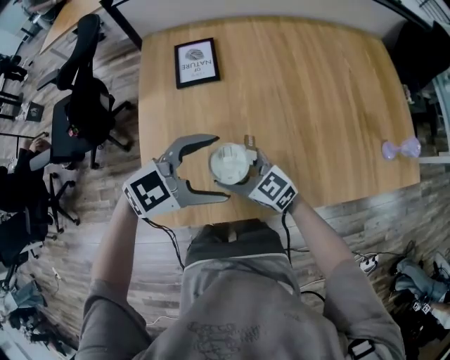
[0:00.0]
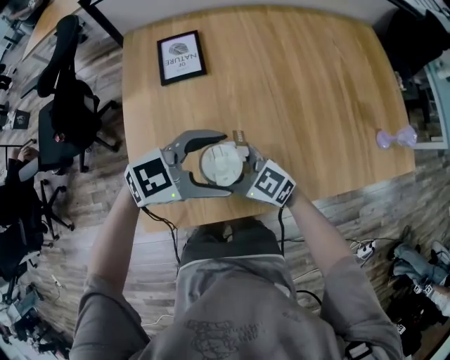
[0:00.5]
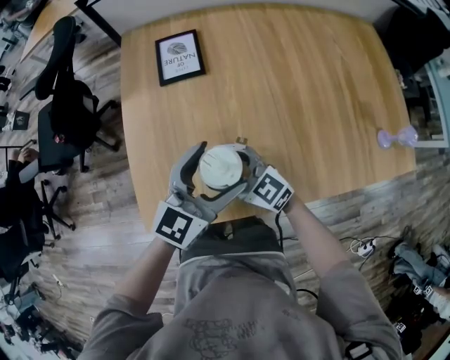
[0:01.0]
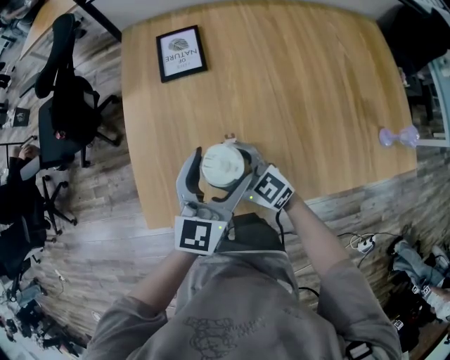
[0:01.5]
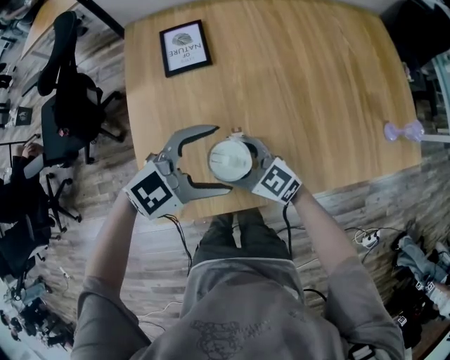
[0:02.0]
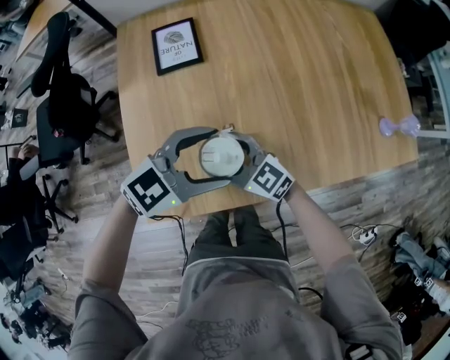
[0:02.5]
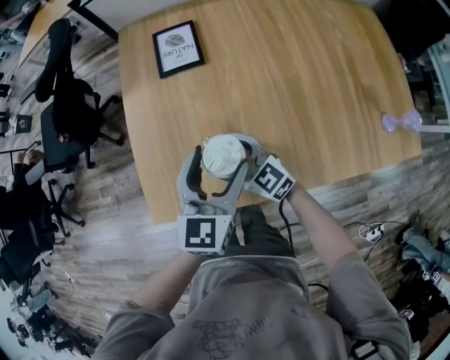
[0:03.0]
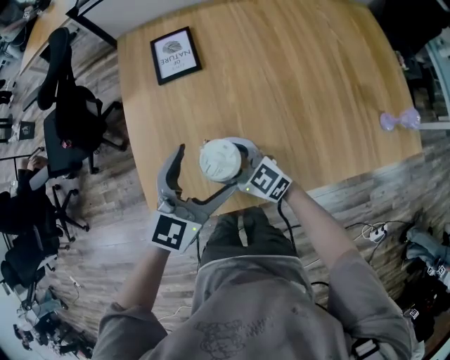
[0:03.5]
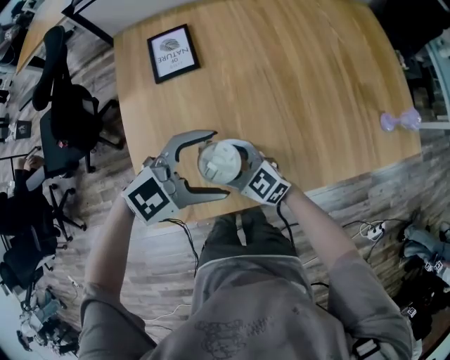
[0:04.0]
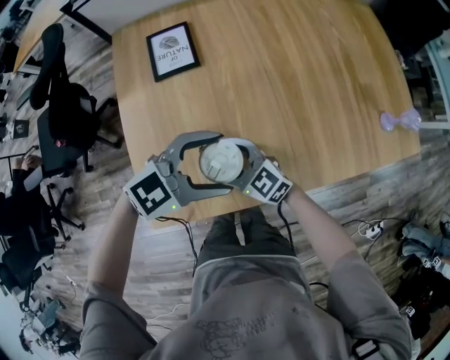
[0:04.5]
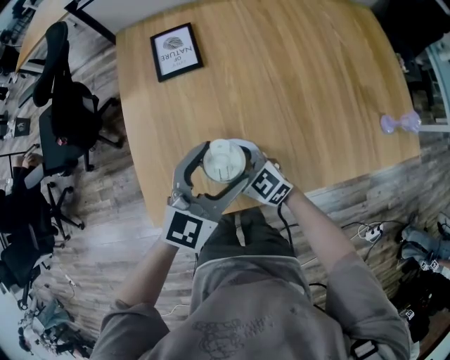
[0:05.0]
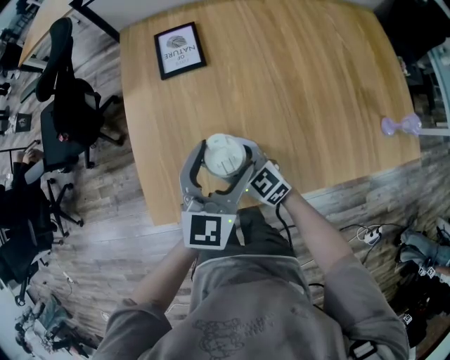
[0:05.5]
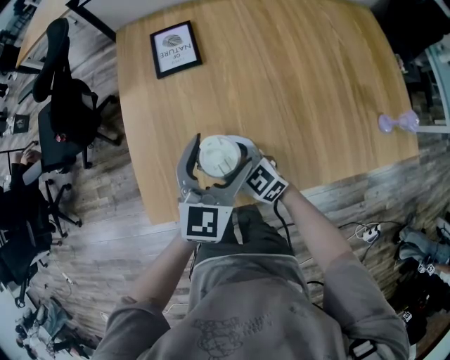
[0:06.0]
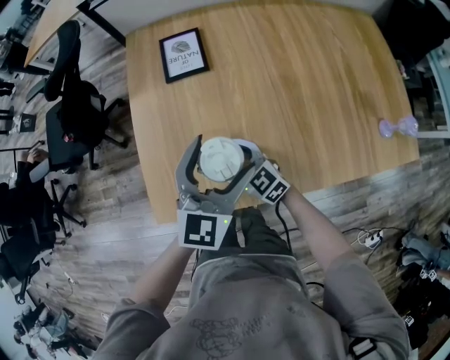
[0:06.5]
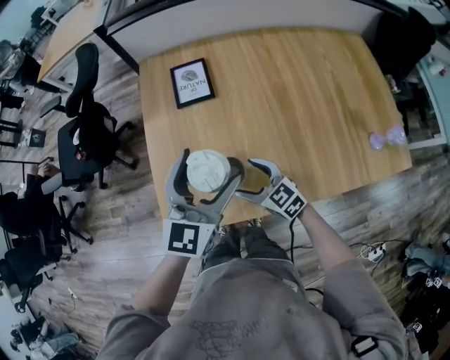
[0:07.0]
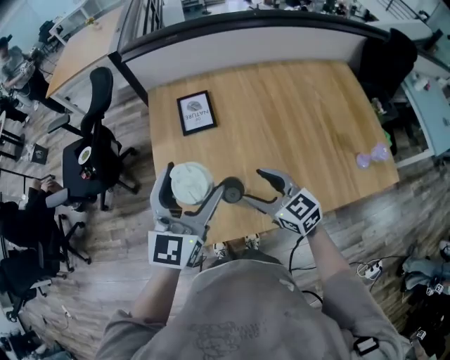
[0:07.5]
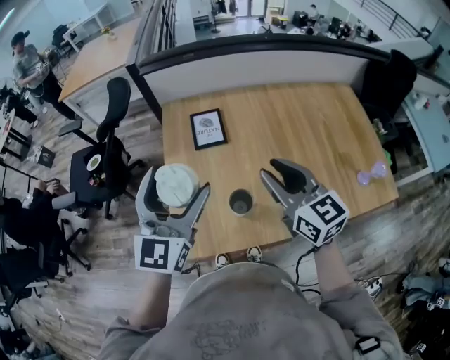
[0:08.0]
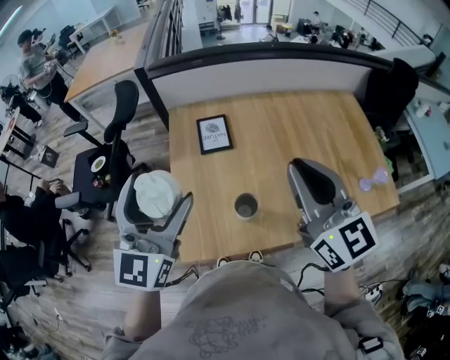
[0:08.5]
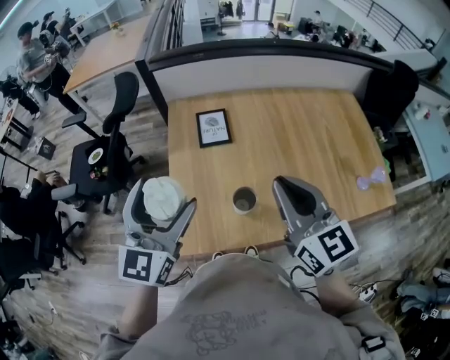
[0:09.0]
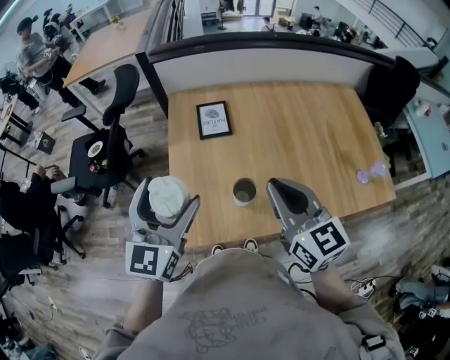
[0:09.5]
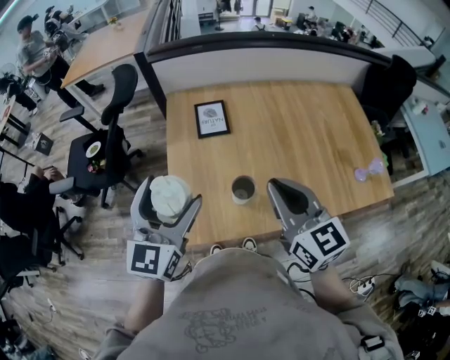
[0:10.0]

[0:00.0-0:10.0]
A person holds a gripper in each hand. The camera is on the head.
0:04.0 to 0:06.0: The left gripper rotates approximately 60 degrees.
0:06.0 to 0:08.0: The right gripper goes about 35 cm upward, turns by roughly 30 degrees, and closes. The left gripper travels upward and to the left by some 30 cm, and changes its angle by roughly 20 degrees.
0:08.0 to 0:10.0: The grippers both shift backward by about 5 cm. The right gripper goes upward and returns, about 10 cm each way.

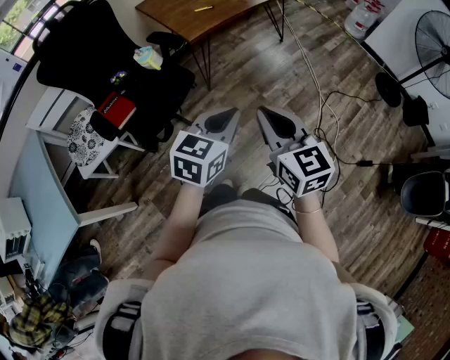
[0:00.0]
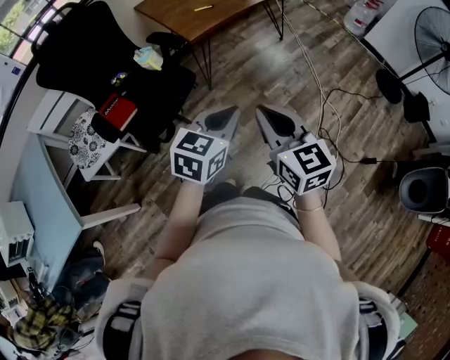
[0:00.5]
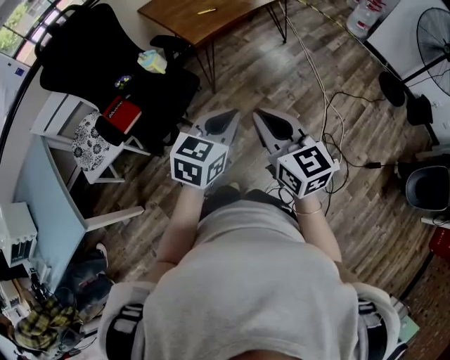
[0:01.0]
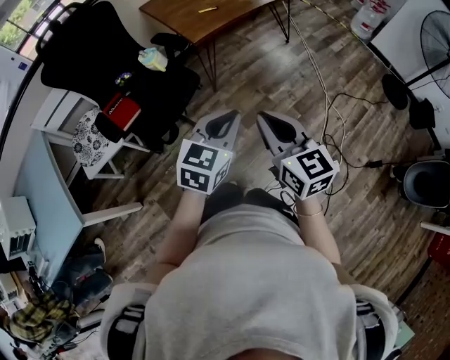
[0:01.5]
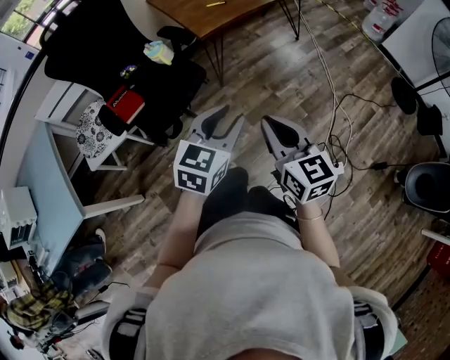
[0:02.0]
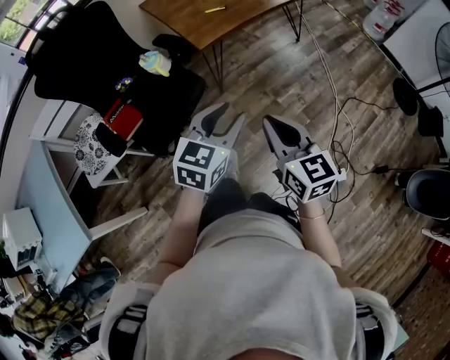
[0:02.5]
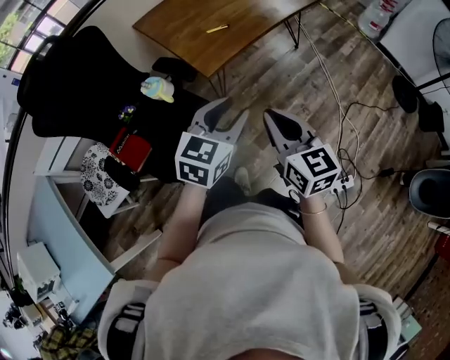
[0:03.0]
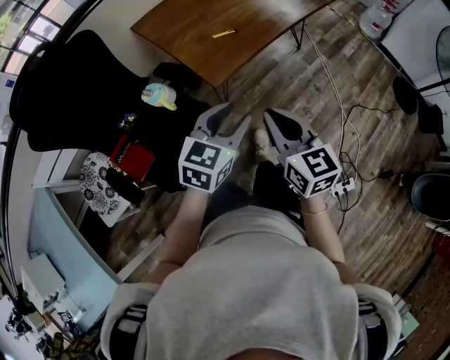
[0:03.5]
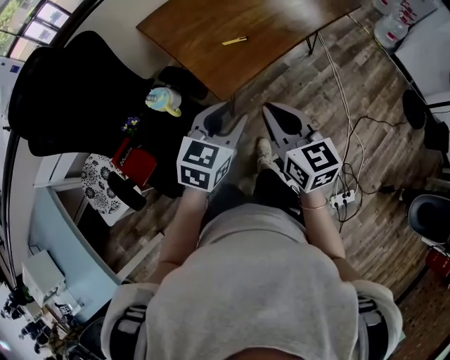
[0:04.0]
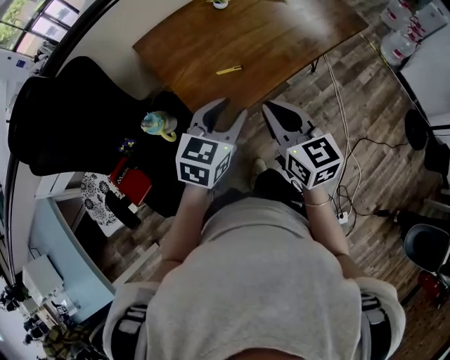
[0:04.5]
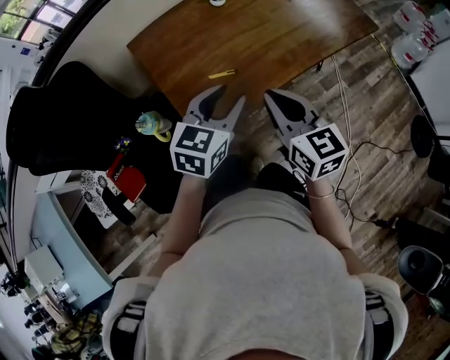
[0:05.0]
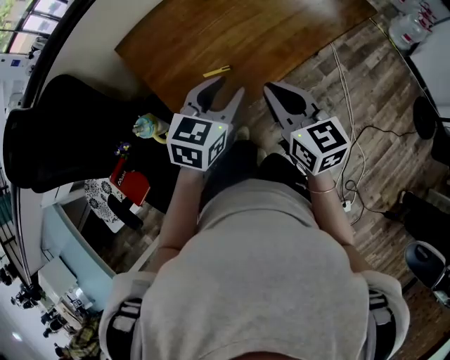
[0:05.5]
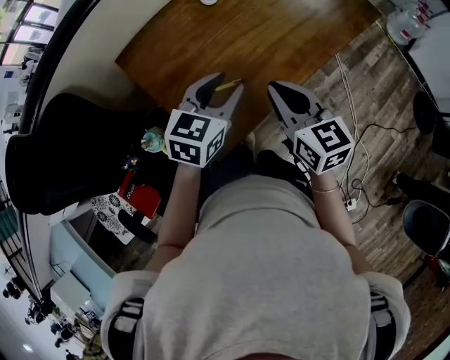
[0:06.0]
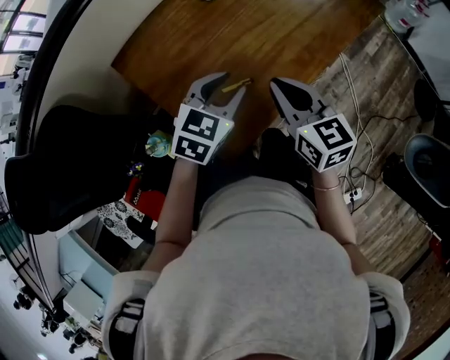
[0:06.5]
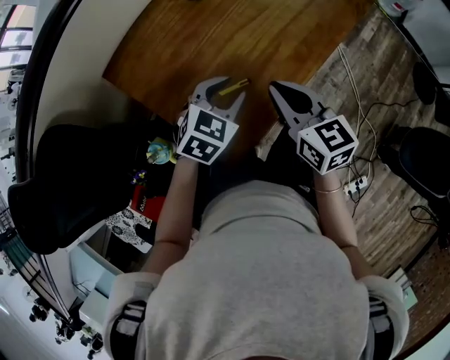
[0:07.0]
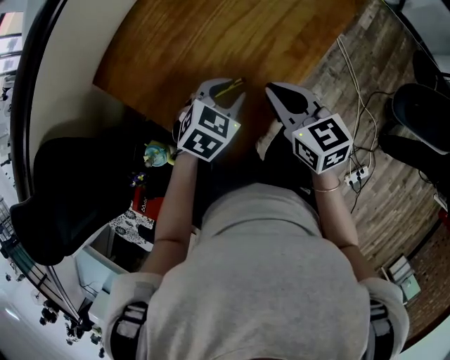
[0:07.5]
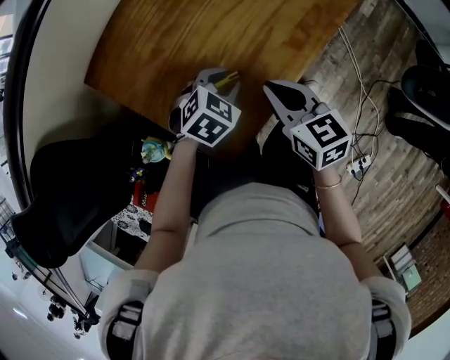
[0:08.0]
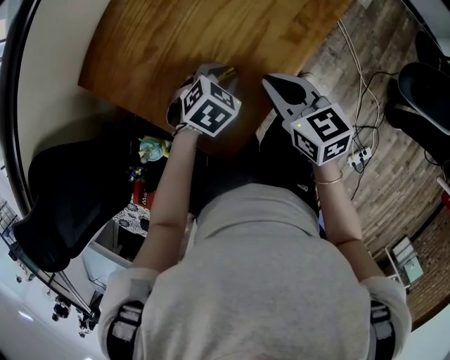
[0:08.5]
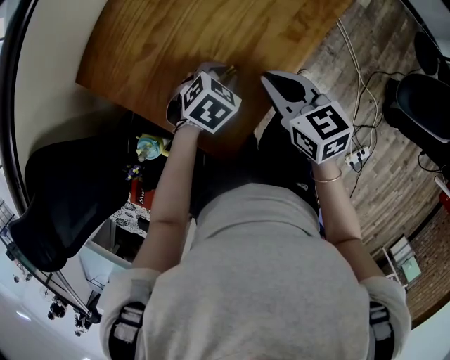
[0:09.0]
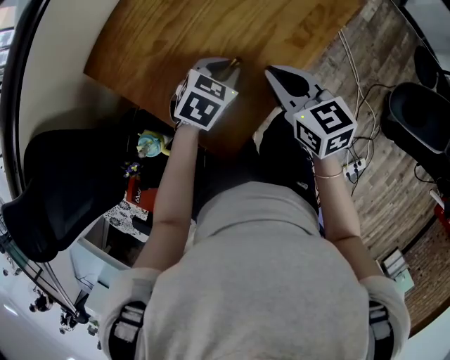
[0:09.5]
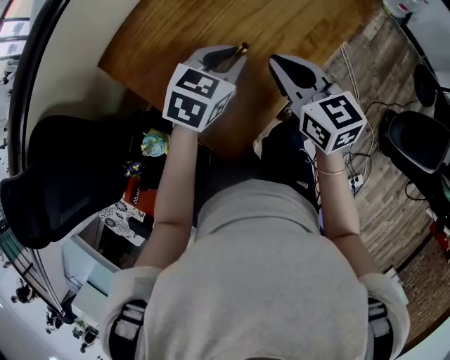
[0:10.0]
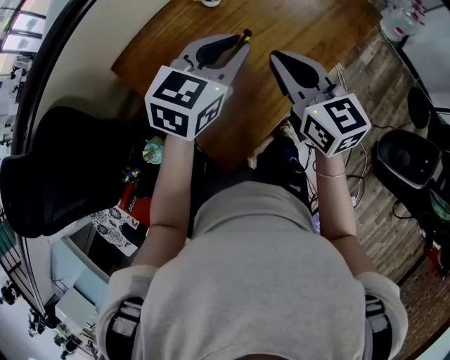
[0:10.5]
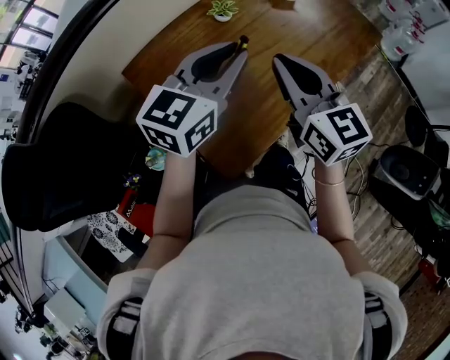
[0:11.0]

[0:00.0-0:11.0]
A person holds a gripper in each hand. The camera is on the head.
0:00.0 to 0:02.0: The left gripper opens its fingers.
0:02.0 to 0:03.5: The left gripper is displaced forward by roughly 30 cm. The right gripper travels forward and to the left by approximately 30 cm.
0:03.5 to 0:05.5: The two grippers go some 30 cm forward.
0:05.5 to 0:07.5: The right gripper heads downward, forward and to the left, covering about 15 cm, while the left gripper goes about 15 cm downward and forward, and changes its angle by some 40 degrees.
0:07.5 to 0:09.0: The left gripper travels downward by about 10 cm.
0:09.0 to 0:11.0: The right gripper travels upward by approximately 20 cm, and swivels some 30 degrees. Meanwhile the left gripper goes about 35 cm upward, and tilts its fingers roughly 60 degrees upward.

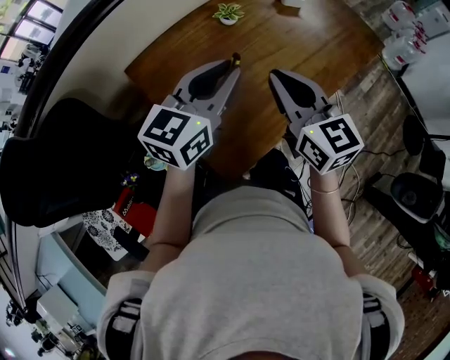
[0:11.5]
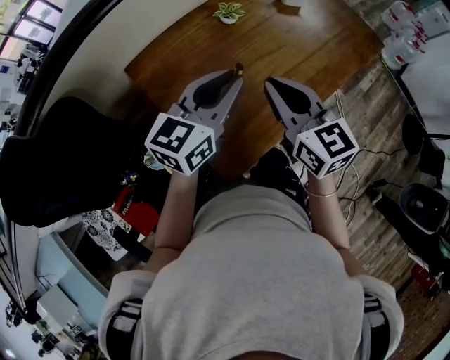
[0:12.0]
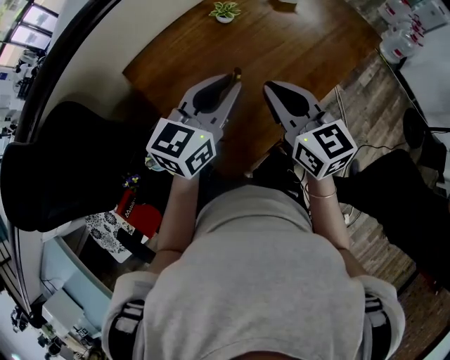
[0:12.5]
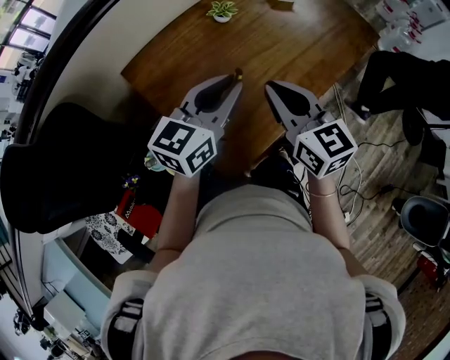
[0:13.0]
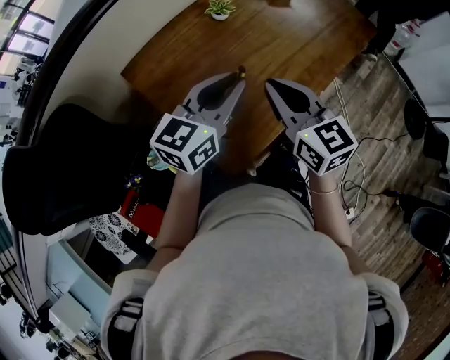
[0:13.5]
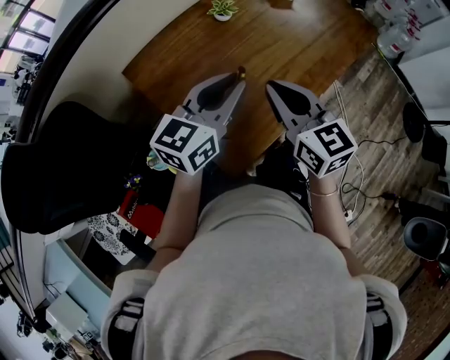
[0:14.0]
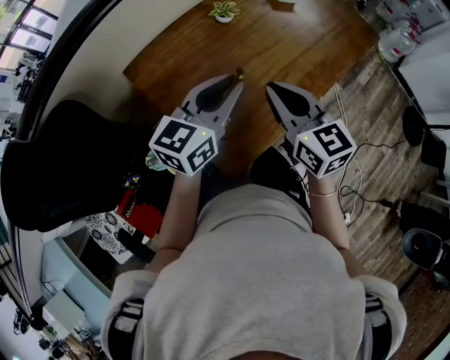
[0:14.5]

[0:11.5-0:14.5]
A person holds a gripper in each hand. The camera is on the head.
0:11.5 to 0:13.0: There are only small adjustments of the grippers.
0:13.0 to 0:14.5: The two grippers keep their place.

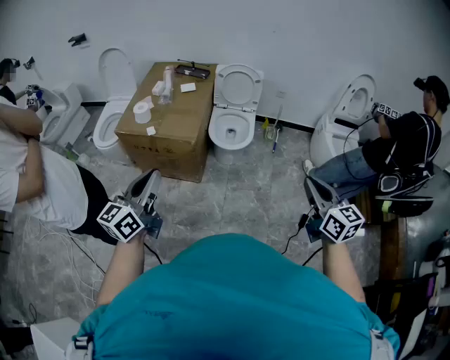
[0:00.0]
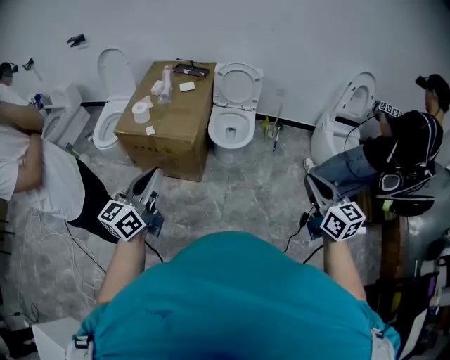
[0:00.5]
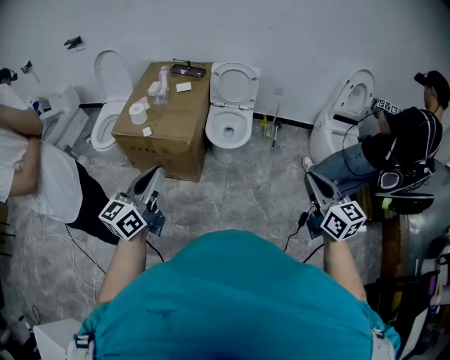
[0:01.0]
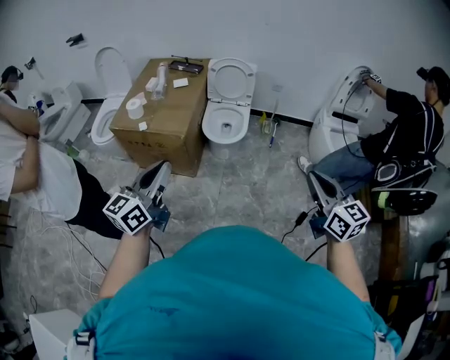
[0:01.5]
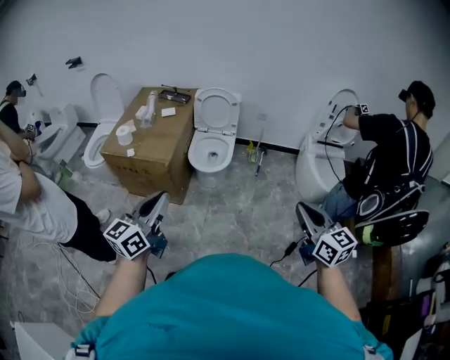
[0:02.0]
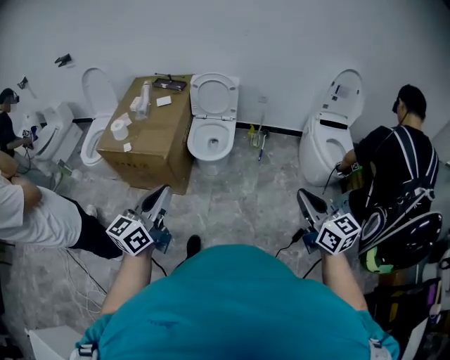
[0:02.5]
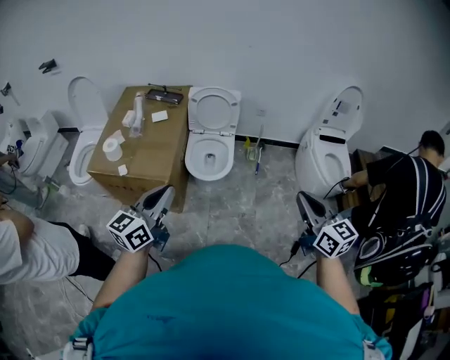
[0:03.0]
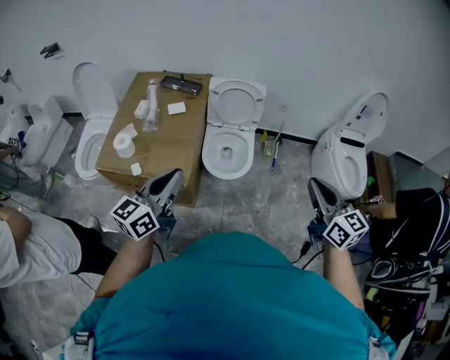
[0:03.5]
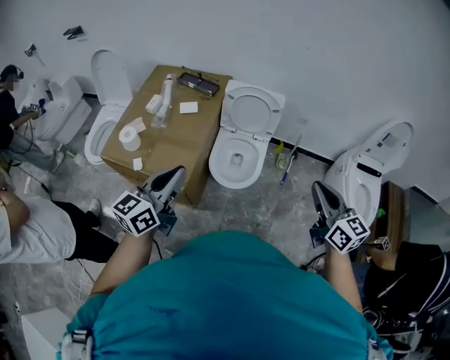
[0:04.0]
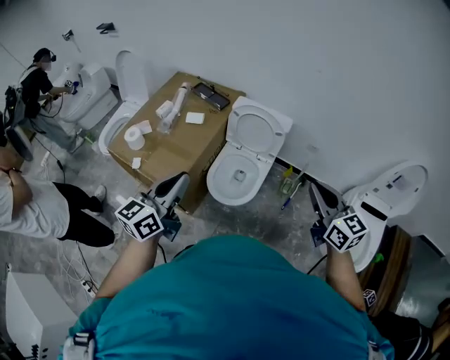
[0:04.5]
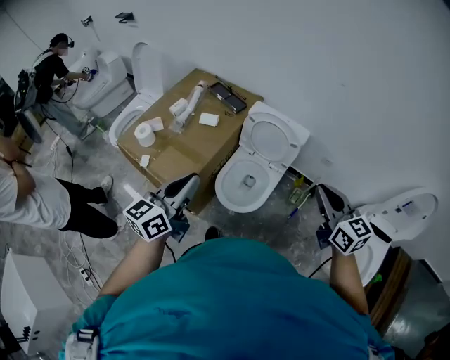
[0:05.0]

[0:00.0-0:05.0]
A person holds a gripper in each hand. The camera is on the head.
0:00.0 to 0:02.5: Both grippers move to the right, some 20 cm.
0:02.5 to 0:05.0: The two grippers travel together, about 50 cm. The right gripper changes its angle by approximately 20 degrees.
